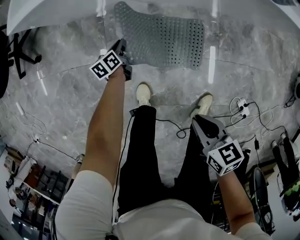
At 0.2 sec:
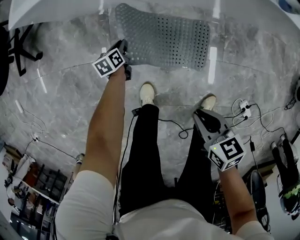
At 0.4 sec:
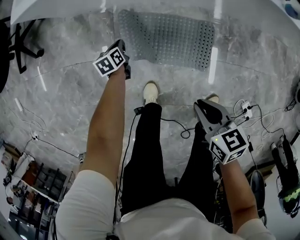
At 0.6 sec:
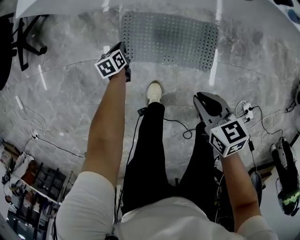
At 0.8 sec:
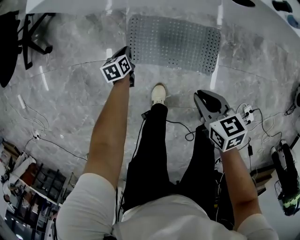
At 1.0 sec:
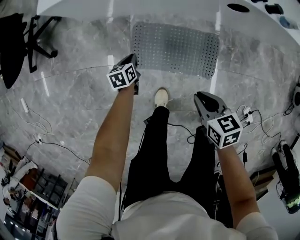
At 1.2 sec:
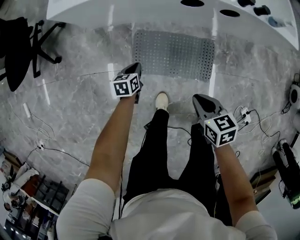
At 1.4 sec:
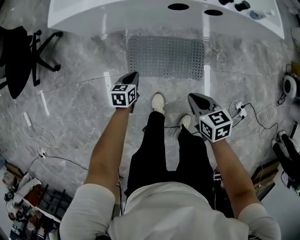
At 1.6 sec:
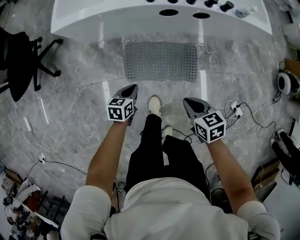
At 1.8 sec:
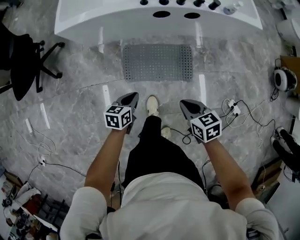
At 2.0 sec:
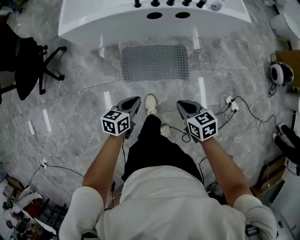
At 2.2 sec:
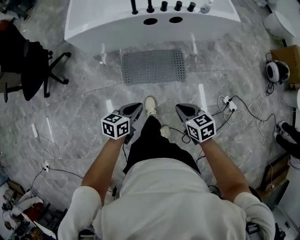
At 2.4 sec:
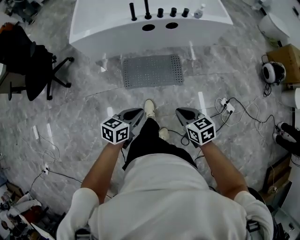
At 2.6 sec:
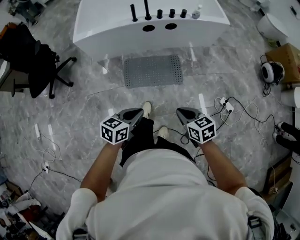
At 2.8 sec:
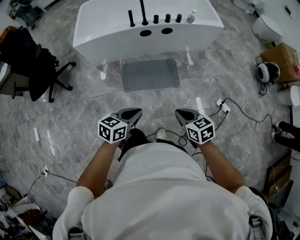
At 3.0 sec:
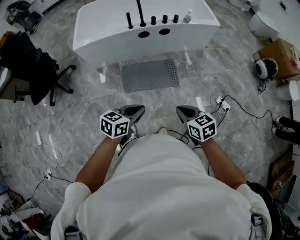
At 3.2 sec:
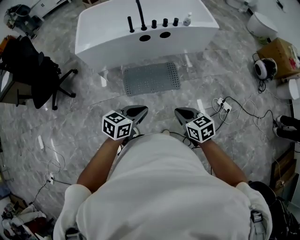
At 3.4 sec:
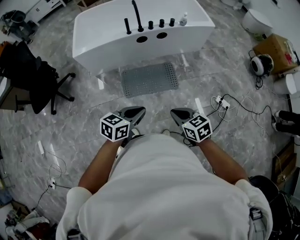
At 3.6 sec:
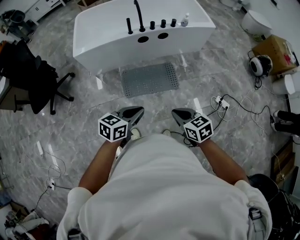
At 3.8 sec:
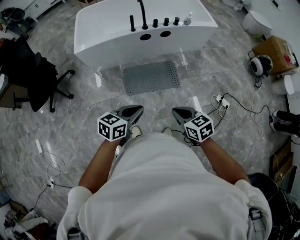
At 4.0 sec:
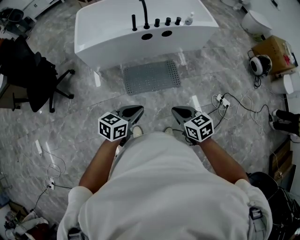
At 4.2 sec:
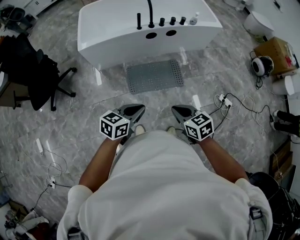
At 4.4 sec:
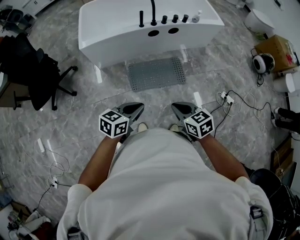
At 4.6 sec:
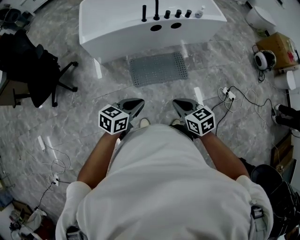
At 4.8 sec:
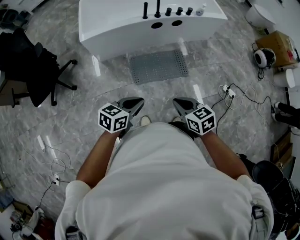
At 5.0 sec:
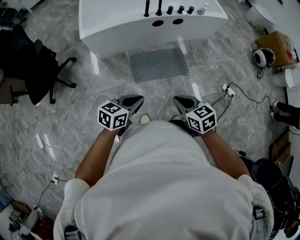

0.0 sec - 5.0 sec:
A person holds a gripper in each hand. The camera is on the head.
0.0 sec - 1.6 sec: The right gripper is displaced to the left and upward by about 15 cm; the left gripper moves upward and backward, roughly 30 cm, and swivels some 30 degrees.
1.6 sec - 3.4 sec: The left gripper moves upward and backward, about 50 cm, and turns by roughly 30 degrees; the right gripper shifts approximately 35 cm backward and upward.
3.4 sec - 5.0 sec: Both grippers move to the left, approximately 20 cm.

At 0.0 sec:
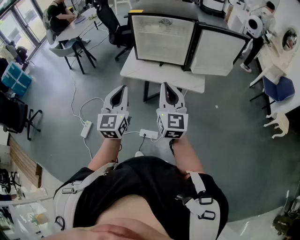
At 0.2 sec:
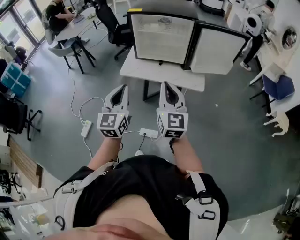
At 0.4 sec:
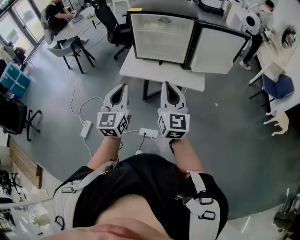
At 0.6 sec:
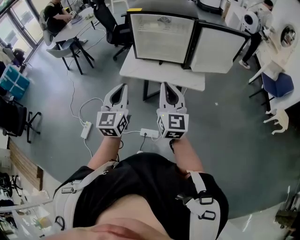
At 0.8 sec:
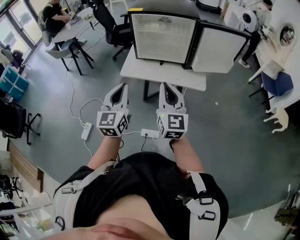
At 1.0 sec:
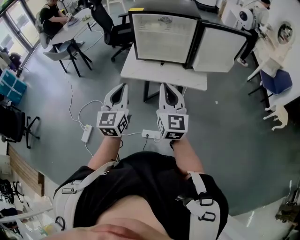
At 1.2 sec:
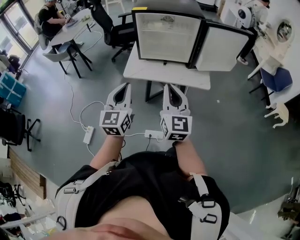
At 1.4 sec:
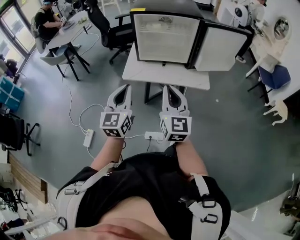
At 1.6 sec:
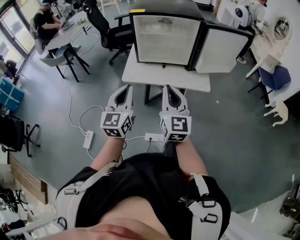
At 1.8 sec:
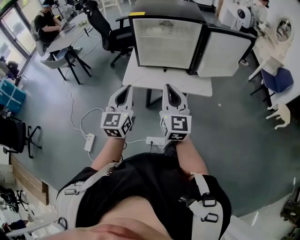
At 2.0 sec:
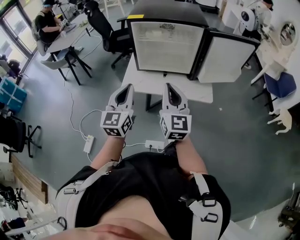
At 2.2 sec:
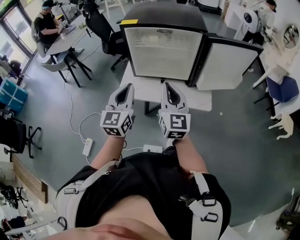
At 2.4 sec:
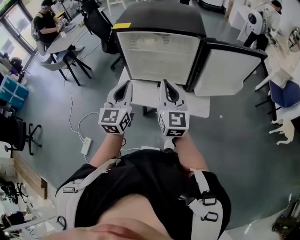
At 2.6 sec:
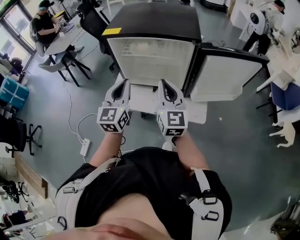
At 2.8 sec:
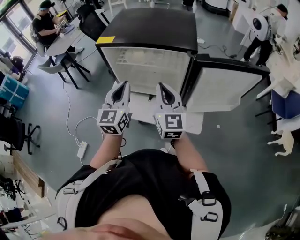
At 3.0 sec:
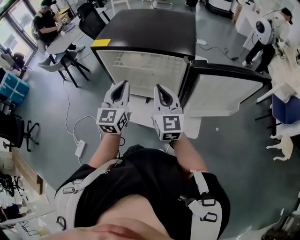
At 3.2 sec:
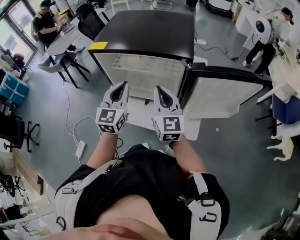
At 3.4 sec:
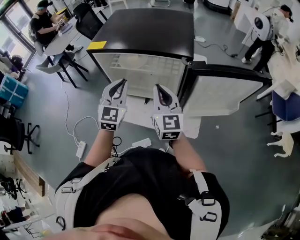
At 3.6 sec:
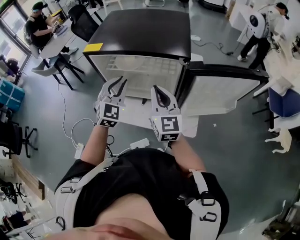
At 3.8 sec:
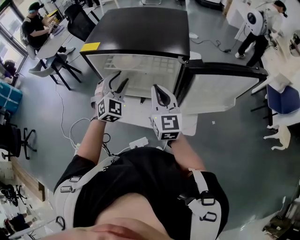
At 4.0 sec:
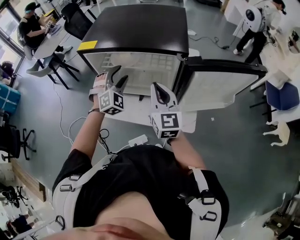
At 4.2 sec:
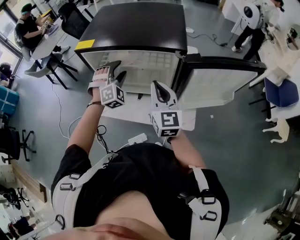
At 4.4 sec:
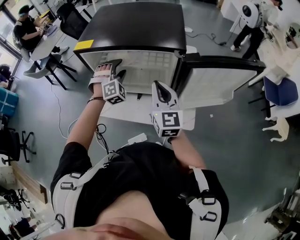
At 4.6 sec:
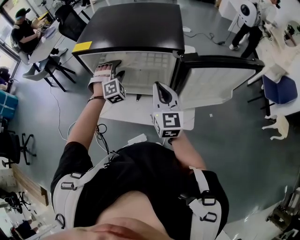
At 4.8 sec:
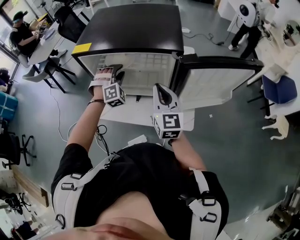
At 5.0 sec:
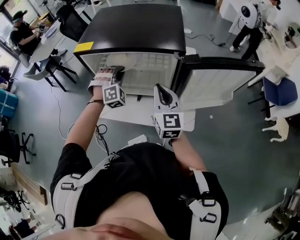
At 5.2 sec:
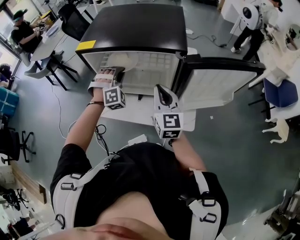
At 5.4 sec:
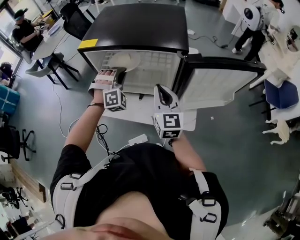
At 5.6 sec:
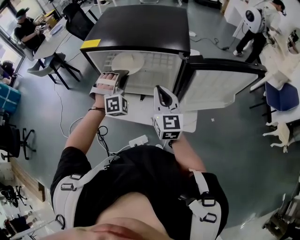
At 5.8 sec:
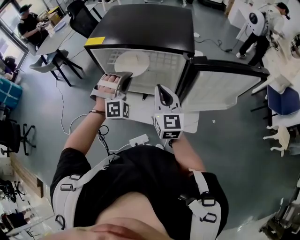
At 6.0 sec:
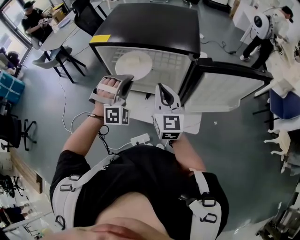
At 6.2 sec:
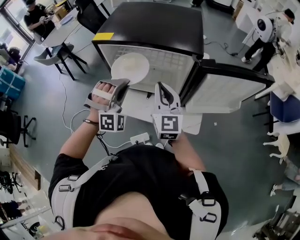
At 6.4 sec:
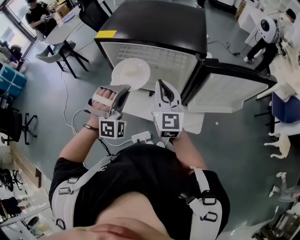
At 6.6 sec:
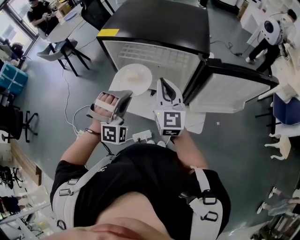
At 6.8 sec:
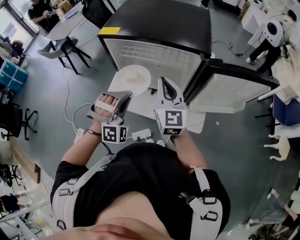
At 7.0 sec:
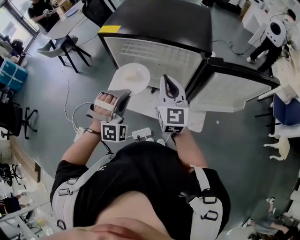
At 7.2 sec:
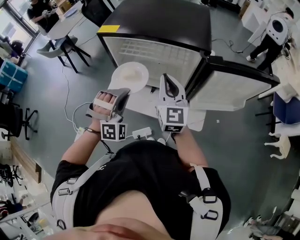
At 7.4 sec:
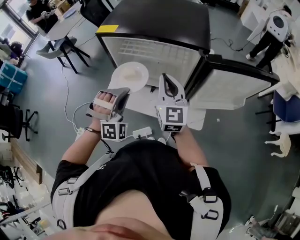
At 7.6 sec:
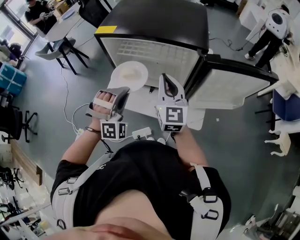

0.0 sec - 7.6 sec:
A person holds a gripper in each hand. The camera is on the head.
0.0 sec - 1.6 sec: The right gripper shifts about 5 cm to the left. The left gripper moves forward and to the left, approximately 10 cm.
1.6 sec - 3.0 sec: The left gripper is displaced forward and to the right by about 35 cm; the right gripper goes approximately 30 cm forward.
3.0 sec - 4.6 sec: The left gripper goes approximately 20 cm forward and downward, rotates around the line of its fingers by approximately 70 degrees, clockwise from behind, and opens its fingers.
4.6 sec - 6.0 sec: The left gripper heads backward and upward, covering roughly 15 cm, and closes up.
6.0 sec - 7.6 sec: The left gripper travels backward by roughly 5 cm.

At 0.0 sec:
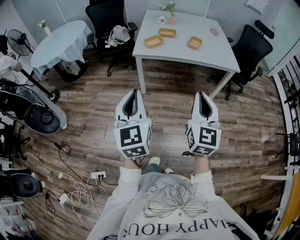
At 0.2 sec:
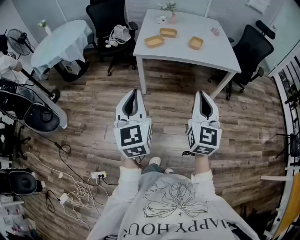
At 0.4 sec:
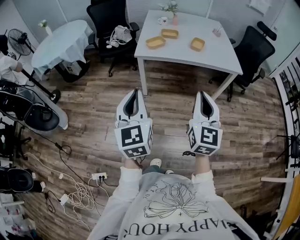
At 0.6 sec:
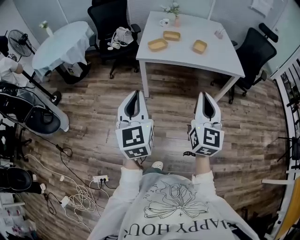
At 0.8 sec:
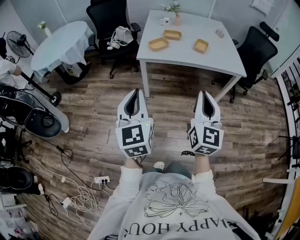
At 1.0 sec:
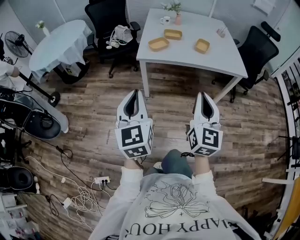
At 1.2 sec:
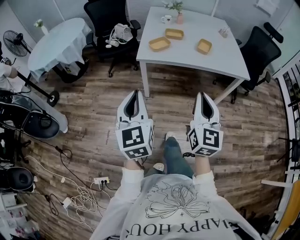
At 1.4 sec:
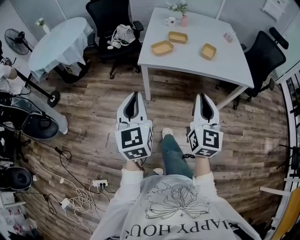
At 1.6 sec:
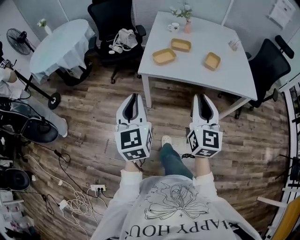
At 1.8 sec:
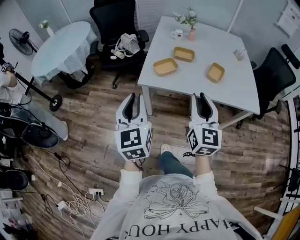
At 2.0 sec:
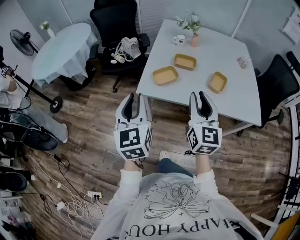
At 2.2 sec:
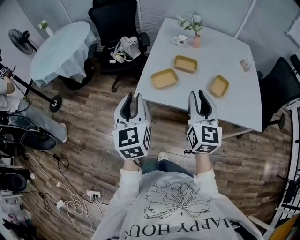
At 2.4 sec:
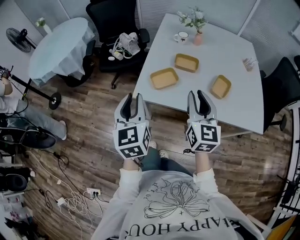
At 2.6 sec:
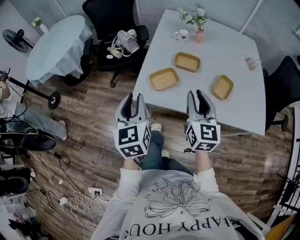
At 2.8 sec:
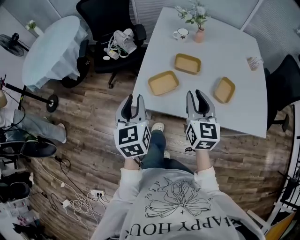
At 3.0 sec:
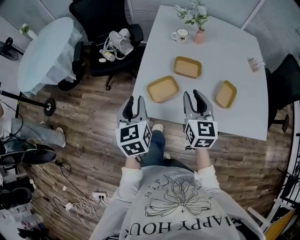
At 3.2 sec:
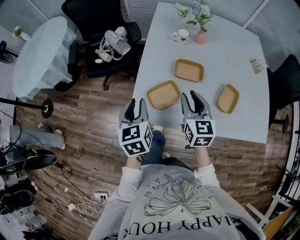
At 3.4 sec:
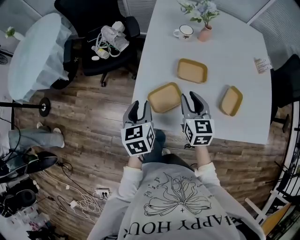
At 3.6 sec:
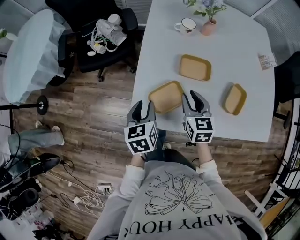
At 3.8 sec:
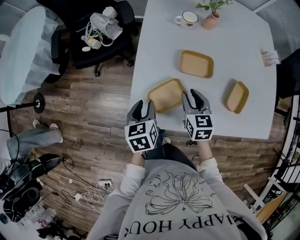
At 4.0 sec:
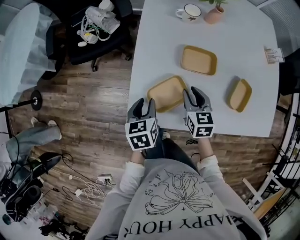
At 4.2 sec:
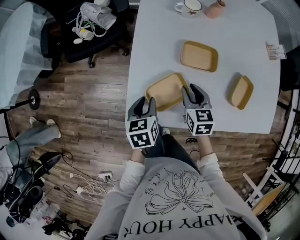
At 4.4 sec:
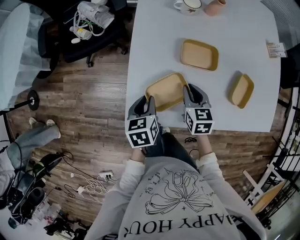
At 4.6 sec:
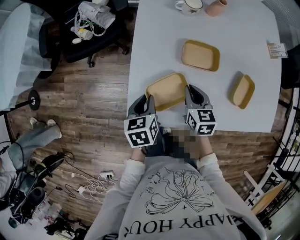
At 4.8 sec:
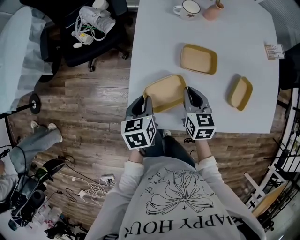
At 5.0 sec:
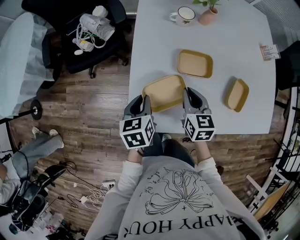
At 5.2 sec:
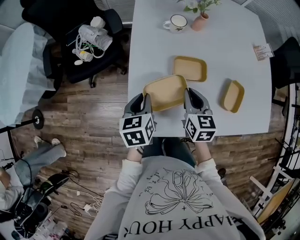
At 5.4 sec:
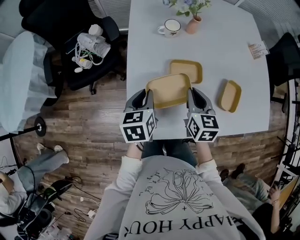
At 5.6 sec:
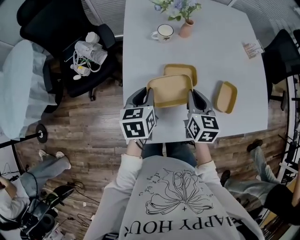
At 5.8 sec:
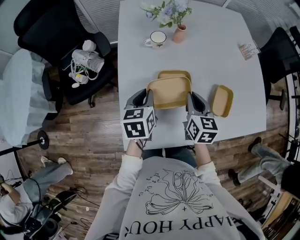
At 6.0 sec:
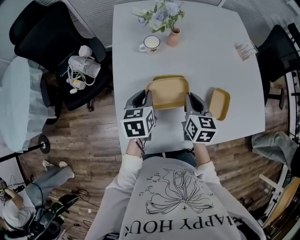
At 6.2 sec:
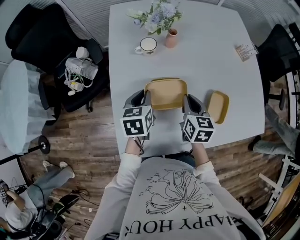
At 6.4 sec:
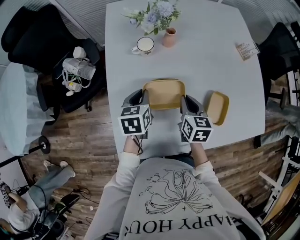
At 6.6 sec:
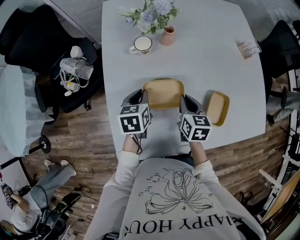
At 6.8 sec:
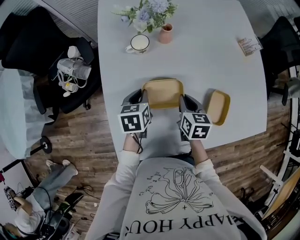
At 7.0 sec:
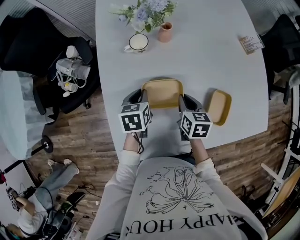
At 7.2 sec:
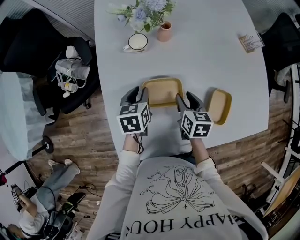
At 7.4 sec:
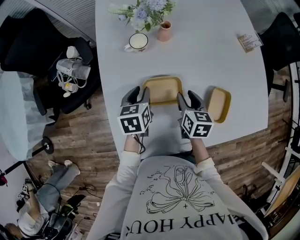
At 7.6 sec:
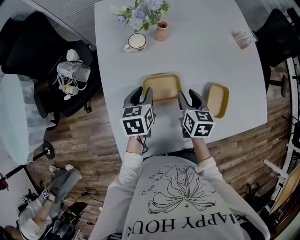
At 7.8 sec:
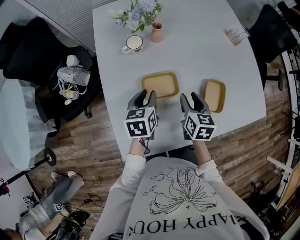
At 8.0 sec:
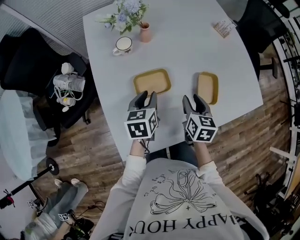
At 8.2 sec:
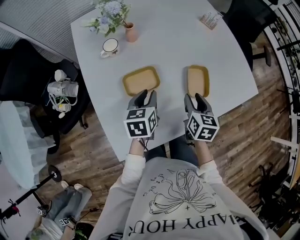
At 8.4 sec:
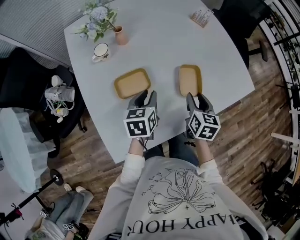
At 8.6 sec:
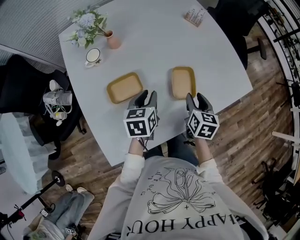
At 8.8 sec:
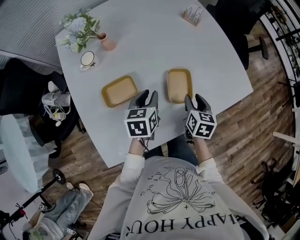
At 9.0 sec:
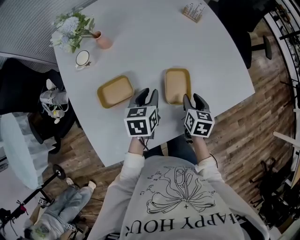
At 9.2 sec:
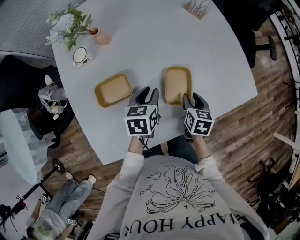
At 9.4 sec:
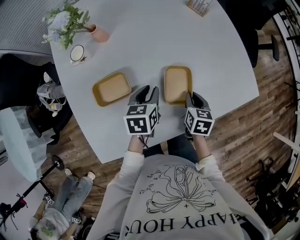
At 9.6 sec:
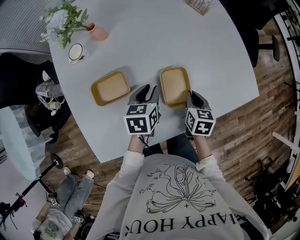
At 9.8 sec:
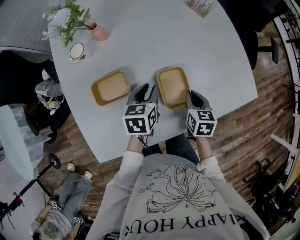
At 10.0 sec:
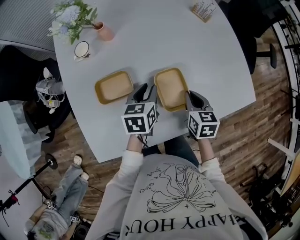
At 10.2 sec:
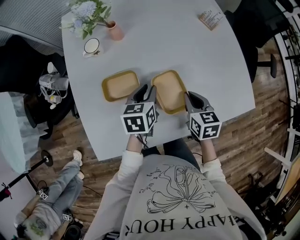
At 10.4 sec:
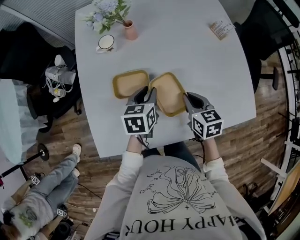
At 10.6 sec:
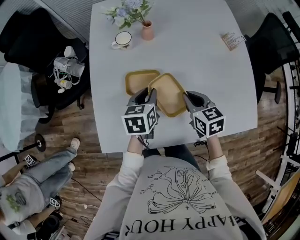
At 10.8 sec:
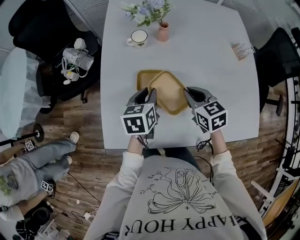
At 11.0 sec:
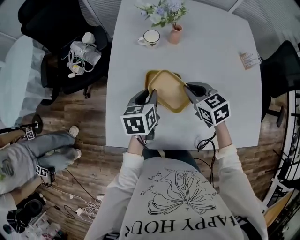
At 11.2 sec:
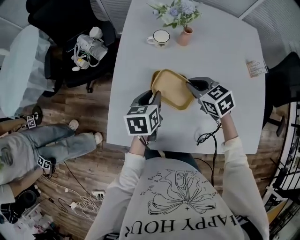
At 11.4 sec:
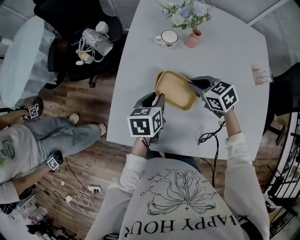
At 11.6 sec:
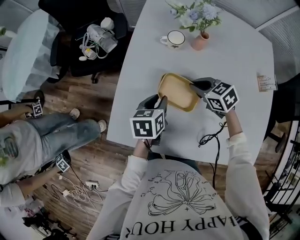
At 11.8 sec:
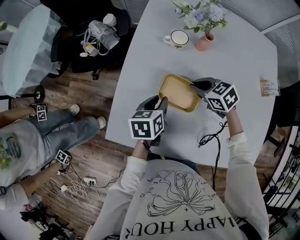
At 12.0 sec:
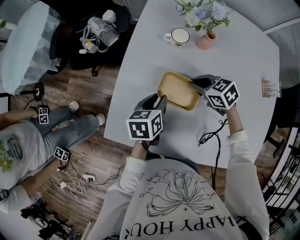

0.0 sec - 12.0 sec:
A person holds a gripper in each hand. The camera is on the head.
0.0 sec - 1.6 sec: Both grippers travel together forward, about 25 cm.
1.6 sec - 3.0 sec: Both grippers move forward, some 35 cm. The left gripper opens.
3.0 sec - 4.4 sec: The right gripper heads downward and forward, covering roughly 25 cm, and swivels roughly 30 degrees. The left gripper heads downward, covering approximately 20 cm, and rotates approximately 30 degrees.
4.4 sec - 6.0 sec: The left gripper travels forward, upward and to the right by some 20 cm, and rotates approximately 20 degrees; the right gripper goes roughly 15 cm upward, to the right and forward, and rotates about 20 degrees.
6.0 sec - 7.6 sec: The right gripper moves downward, roughly 5 cm, and opens its fingers.
7.6 sec - 9.0 sec: The grippers both shift to the right by about 25 cm. The right gripper changes its angle by approximately 20 degrees.
9.0 sec - 10.4 sec: The right gripper moves to the left and upward, about 10 cm, changes its angle by approximately 40 degrees, and closes its fingers, while the left gripper goes about 5 cm to the left.
10.4 sec - 12.0 sec: The left gripper shifts by some 15 cm, and turns by about 30 degrees; the right gripper ends up roughly 25 cm from where it was, and changes its angle by approximately 60 degrees.
